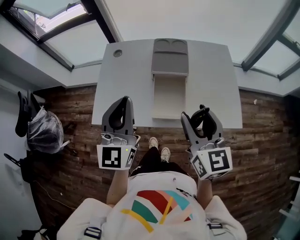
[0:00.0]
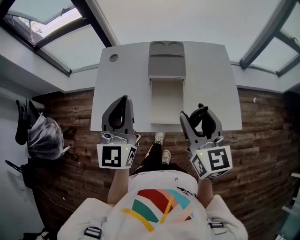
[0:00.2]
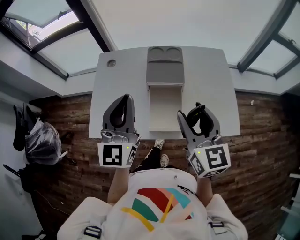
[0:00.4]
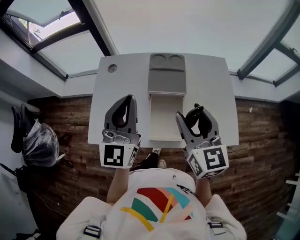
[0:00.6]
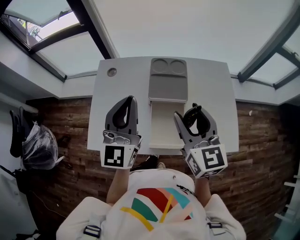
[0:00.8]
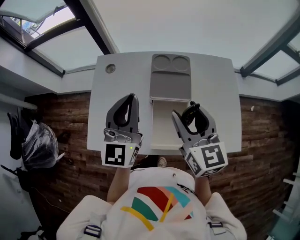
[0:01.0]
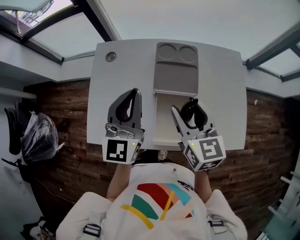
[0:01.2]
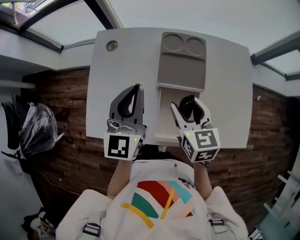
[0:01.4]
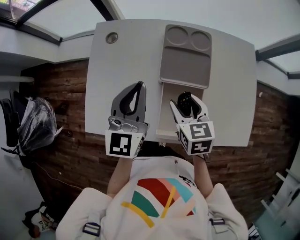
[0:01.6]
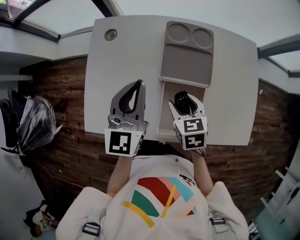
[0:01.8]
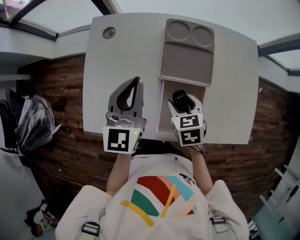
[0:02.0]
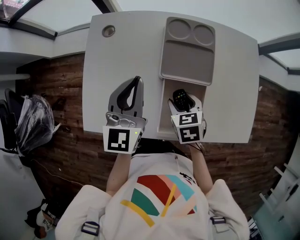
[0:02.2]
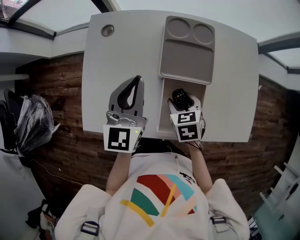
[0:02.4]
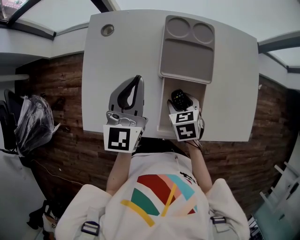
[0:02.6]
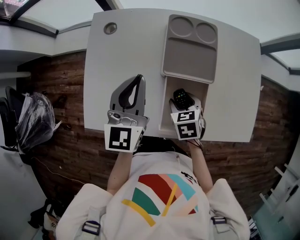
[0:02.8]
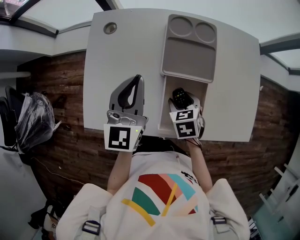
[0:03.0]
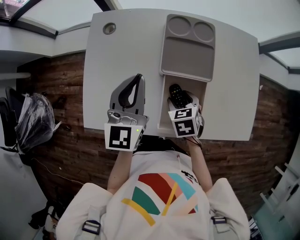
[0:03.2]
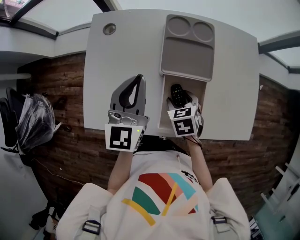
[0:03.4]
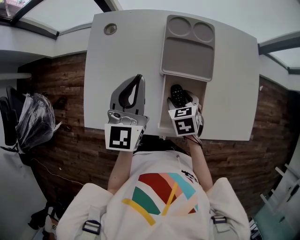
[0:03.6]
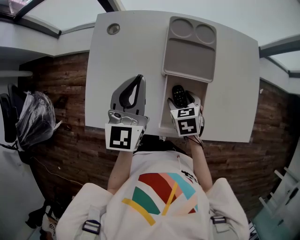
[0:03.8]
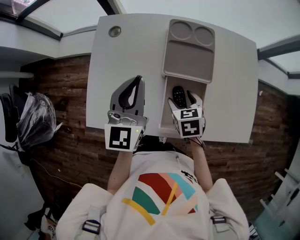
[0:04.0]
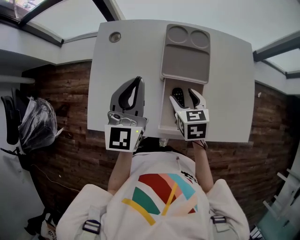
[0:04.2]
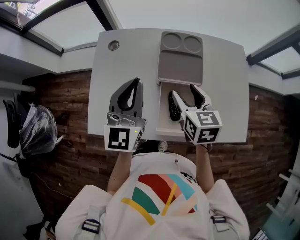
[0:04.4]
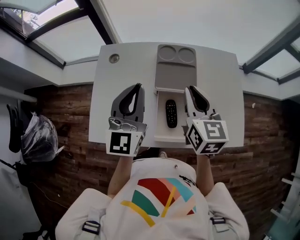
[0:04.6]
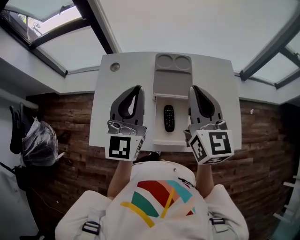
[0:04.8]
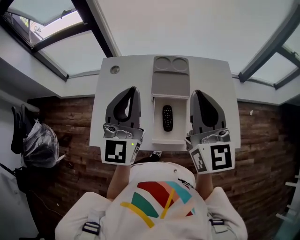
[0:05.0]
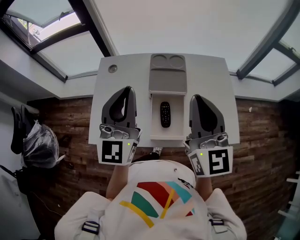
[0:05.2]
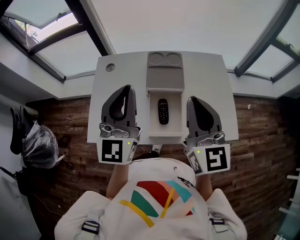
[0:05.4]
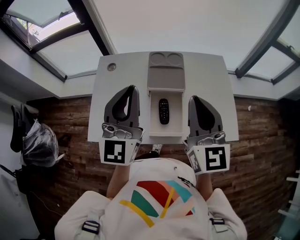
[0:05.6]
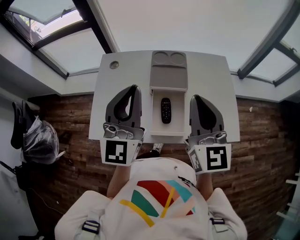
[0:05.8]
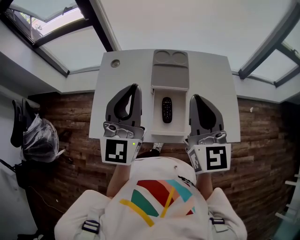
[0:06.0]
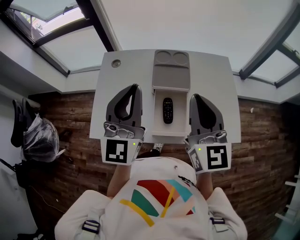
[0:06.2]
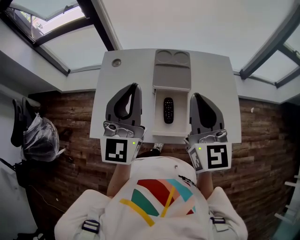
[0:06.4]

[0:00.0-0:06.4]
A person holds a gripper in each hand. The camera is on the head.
0:00.0 to 0:01.6: Both grippers travel together forward and downward, some 25 cm. The right gripper points its fingers about 30 degrees further downward.
0:01.6 to 0:03.2: The right gripper shifts approximately 10 cm downward, and changes its angle by approximately 20 degrees.
0:03.2 to 0:04.8: The left gripper goes some 15 cm upward, while the right gripper heads upward, covering about 35 cm, angles its fingers upward, by roughly 60 degrees, and closes up.
0:04.8 to 0:06.4: The two grippers go some 5 cm backward.

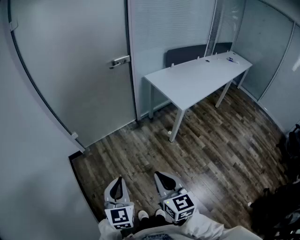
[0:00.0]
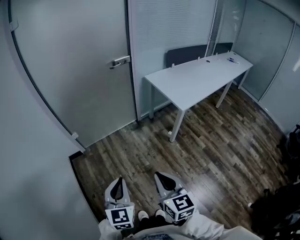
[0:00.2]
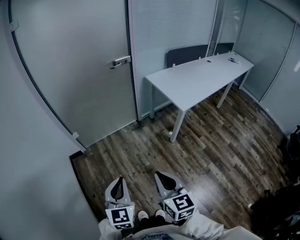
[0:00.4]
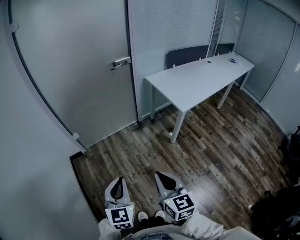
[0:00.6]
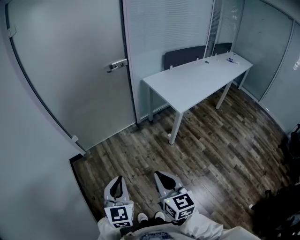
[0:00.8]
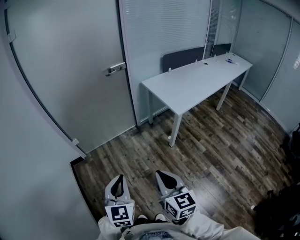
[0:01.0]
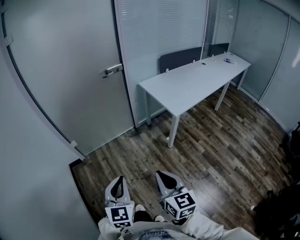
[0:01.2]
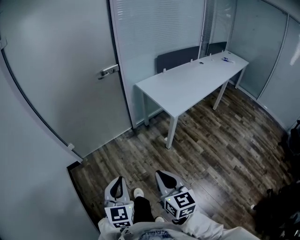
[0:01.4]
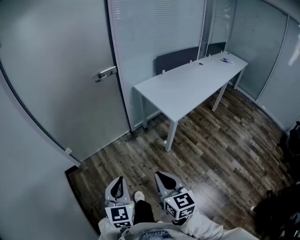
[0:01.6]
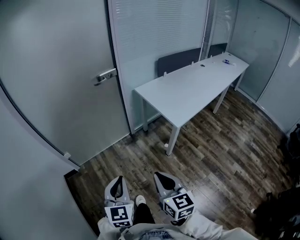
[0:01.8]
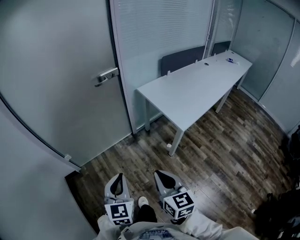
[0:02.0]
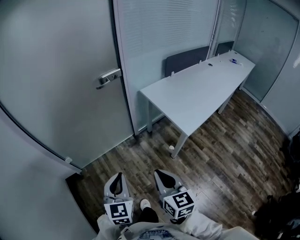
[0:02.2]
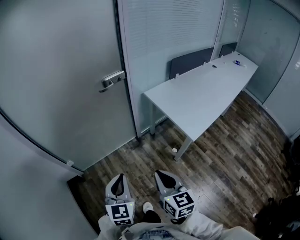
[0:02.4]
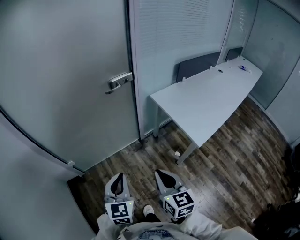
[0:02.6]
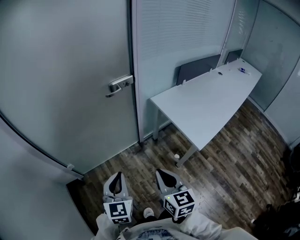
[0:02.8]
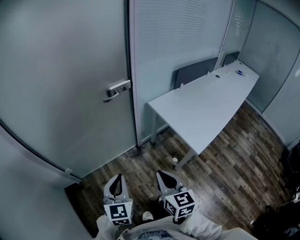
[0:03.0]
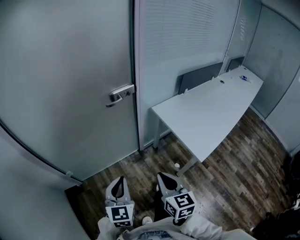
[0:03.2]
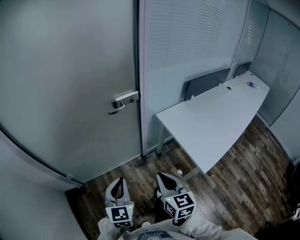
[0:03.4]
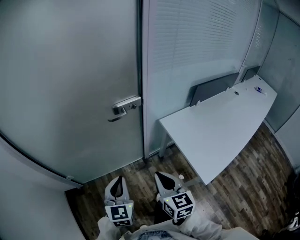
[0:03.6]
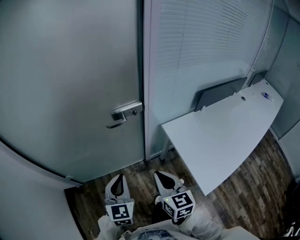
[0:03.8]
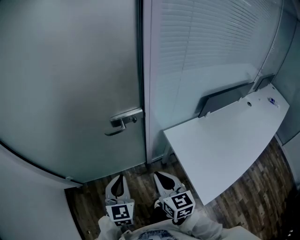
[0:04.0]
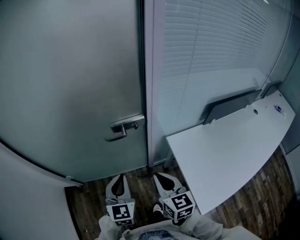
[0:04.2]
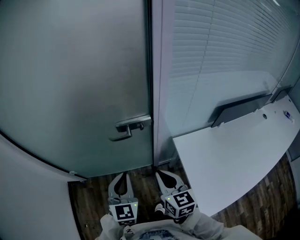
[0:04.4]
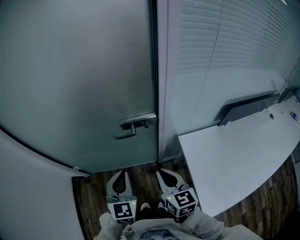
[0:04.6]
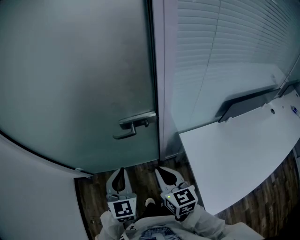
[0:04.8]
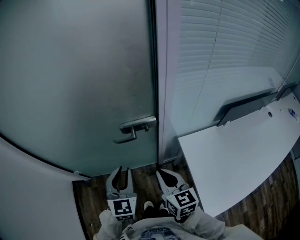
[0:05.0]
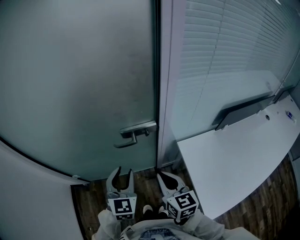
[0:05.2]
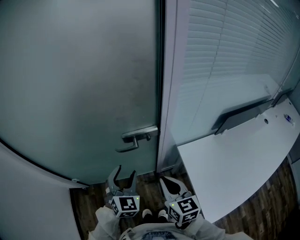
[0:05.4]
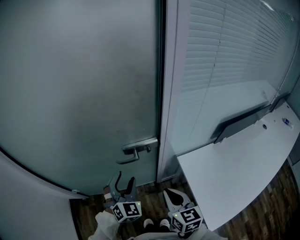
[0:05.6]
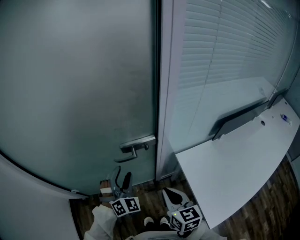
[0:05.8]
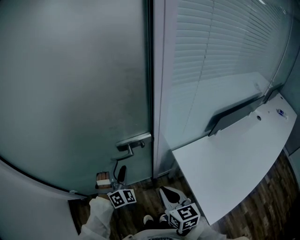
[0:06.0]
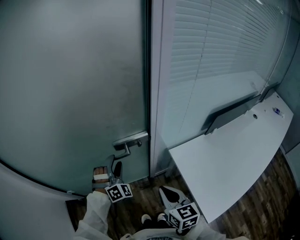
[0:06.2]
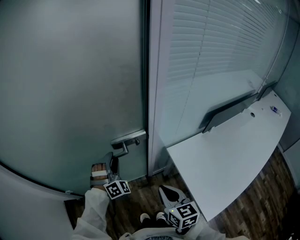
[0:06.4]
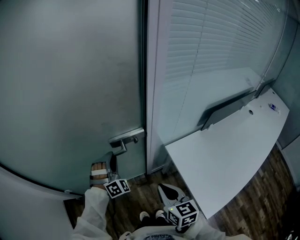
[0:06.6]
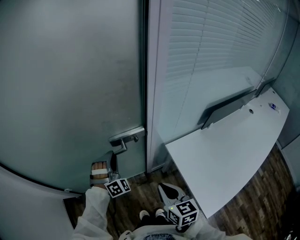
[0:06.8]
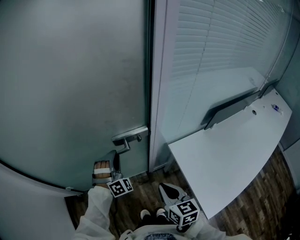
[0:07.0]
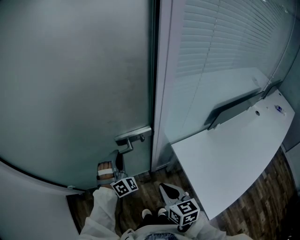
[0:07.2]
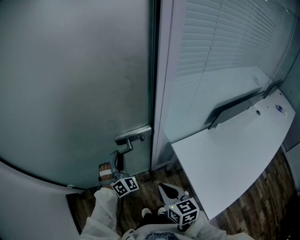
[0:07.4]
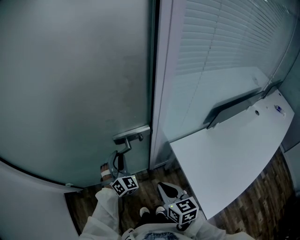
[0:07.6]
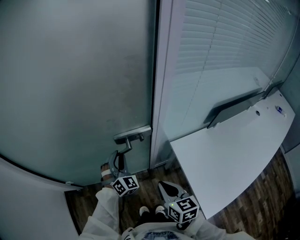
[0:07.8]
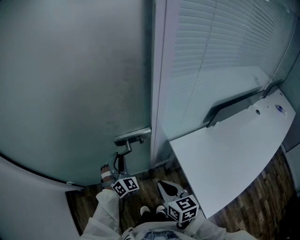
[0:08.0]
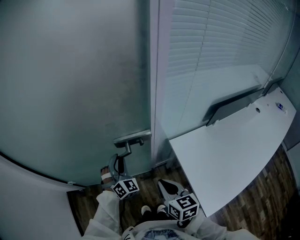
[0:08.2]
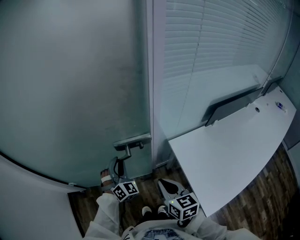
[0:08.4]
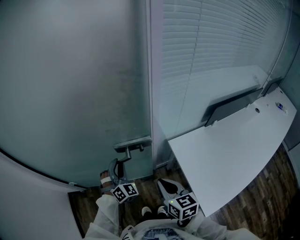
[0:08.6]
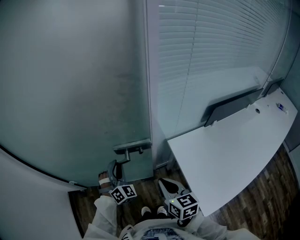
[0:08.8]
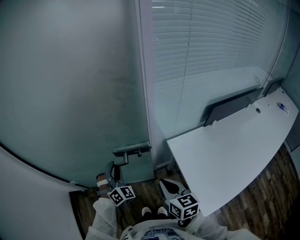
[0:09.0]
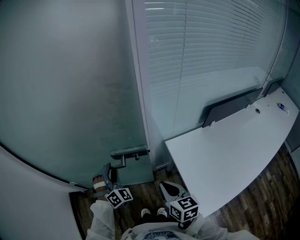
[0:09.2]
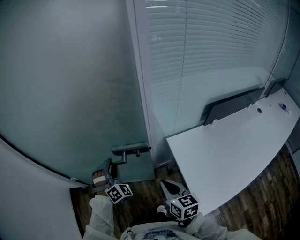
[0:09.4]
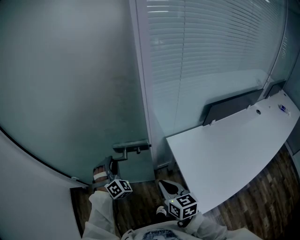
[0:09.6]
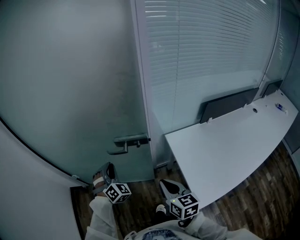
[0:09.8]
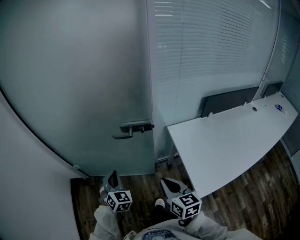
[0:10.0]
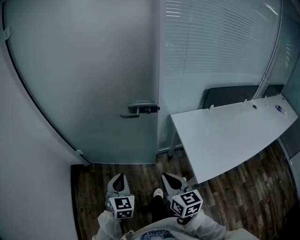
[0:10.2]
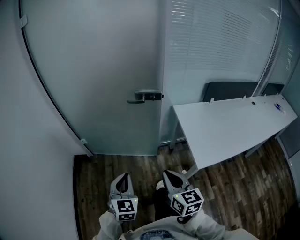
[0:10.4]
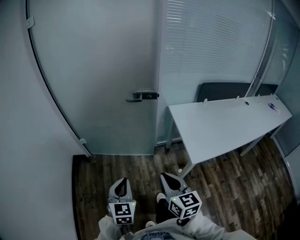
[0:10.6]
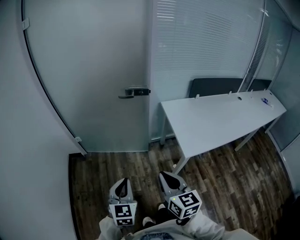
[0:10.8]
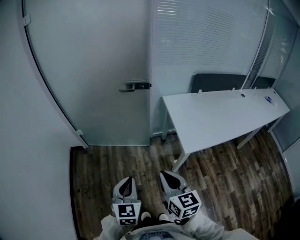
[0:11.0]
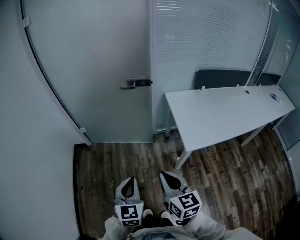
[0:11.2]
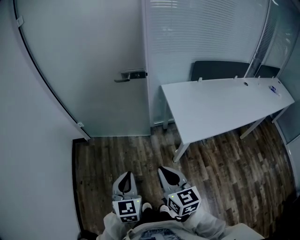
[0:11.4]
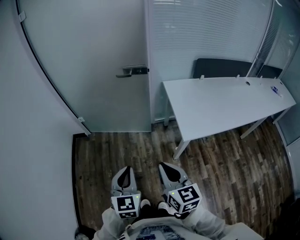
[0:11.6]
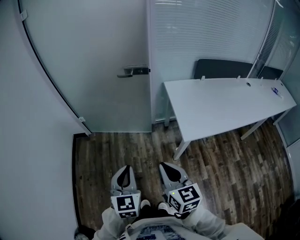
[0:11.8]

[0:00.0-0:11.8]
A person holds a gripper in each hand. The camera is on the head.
0:00.0 to 0:01.4: The two grippers go about 10 cm to the right.
0:01.4 to 0:03.0: The two grippers go about 35 cm forward.
0:03.0 to 0:04.4: The grippers both shift forward by roughly 30 cm. The left gripper rotates about 20 degrees. Meanwhile the right gripper swivels some 20 degrees.
0:04.4 to 0:06.0: The left gripper goes approximately 15 cm forward, rolls clockwise, seen from behind, by roughly 50 degrees, and opens its fingers.
0:06.0 to 0:07.4: The left gripper closes its fingers.
0:07.4 to 0:08.8: The left gripper is displaced backward by approximately 10 cm.
0:08.8 to 0:10.4: The grippers both shift backward by some 40 cm. The left gripper rolls counterclockwise, seen from behind, by some 40 degrees, and closes its fingers.
0:10.4 to 0:11.8: The right gripper is displaced backward by approximately 15 cm, while the left gripper travels backward and to the right by some 15 cm.

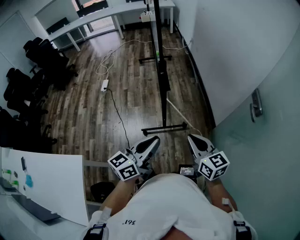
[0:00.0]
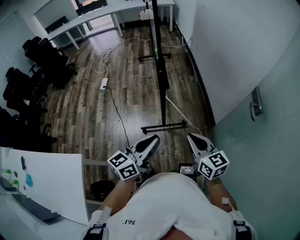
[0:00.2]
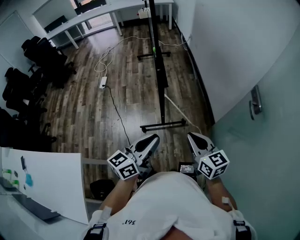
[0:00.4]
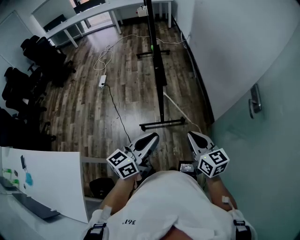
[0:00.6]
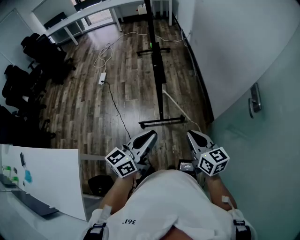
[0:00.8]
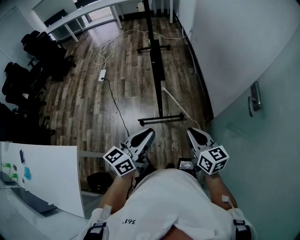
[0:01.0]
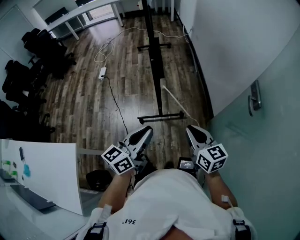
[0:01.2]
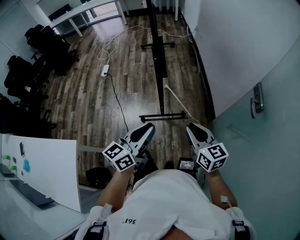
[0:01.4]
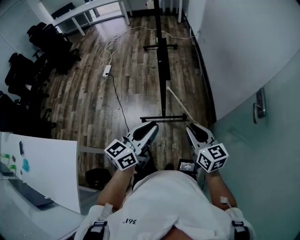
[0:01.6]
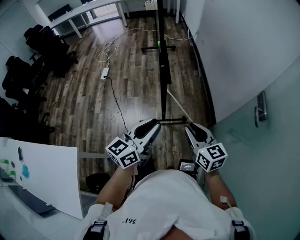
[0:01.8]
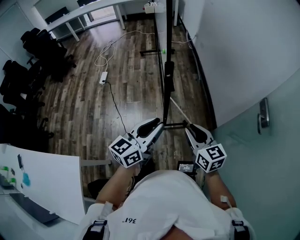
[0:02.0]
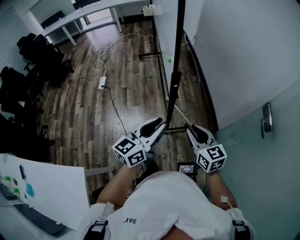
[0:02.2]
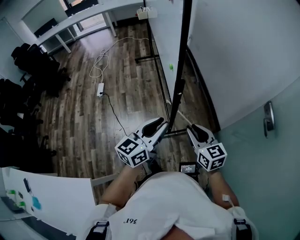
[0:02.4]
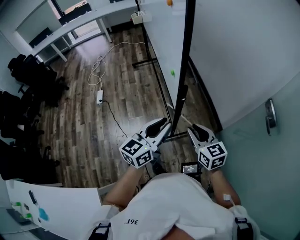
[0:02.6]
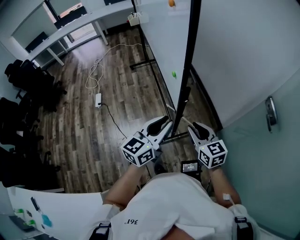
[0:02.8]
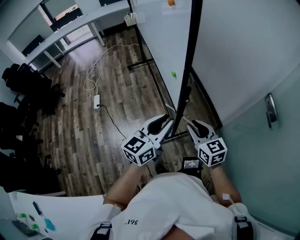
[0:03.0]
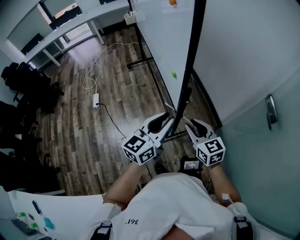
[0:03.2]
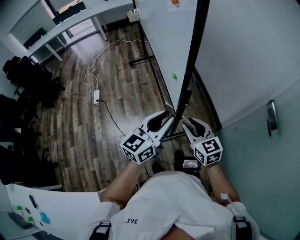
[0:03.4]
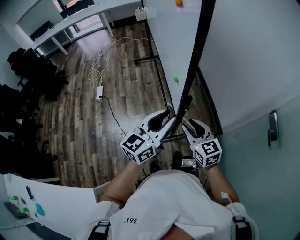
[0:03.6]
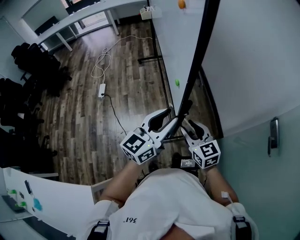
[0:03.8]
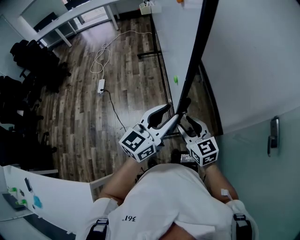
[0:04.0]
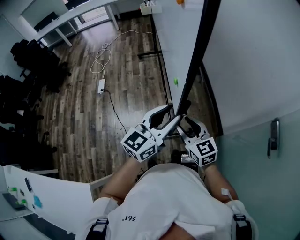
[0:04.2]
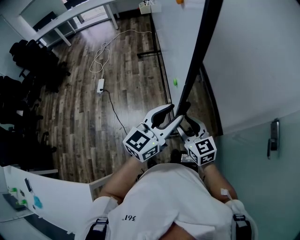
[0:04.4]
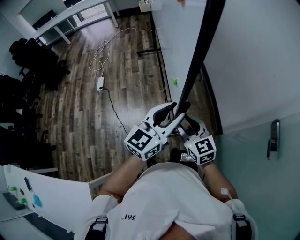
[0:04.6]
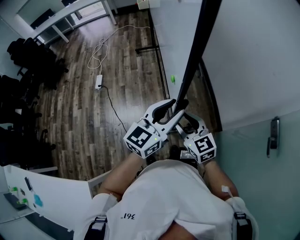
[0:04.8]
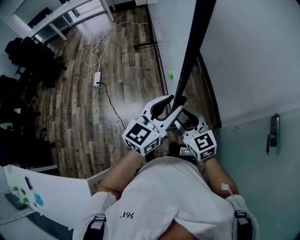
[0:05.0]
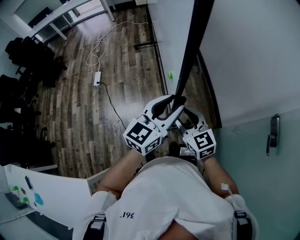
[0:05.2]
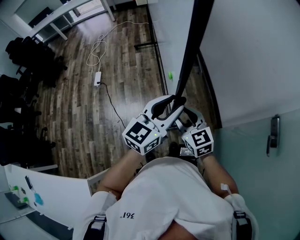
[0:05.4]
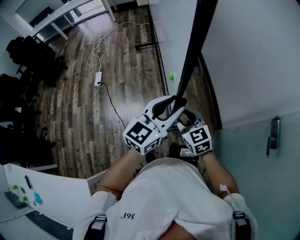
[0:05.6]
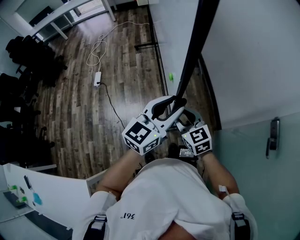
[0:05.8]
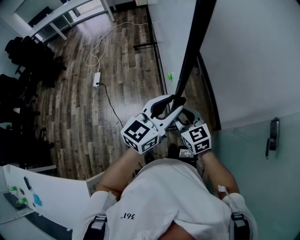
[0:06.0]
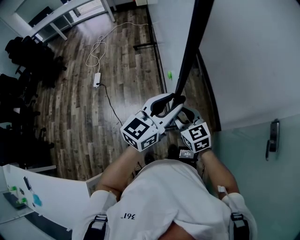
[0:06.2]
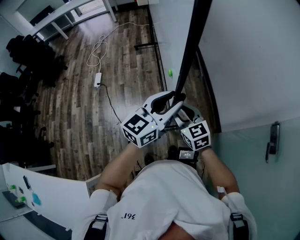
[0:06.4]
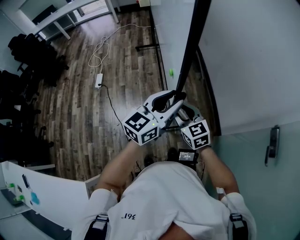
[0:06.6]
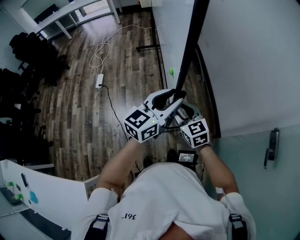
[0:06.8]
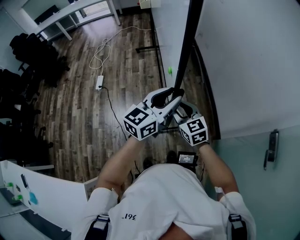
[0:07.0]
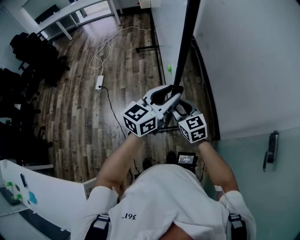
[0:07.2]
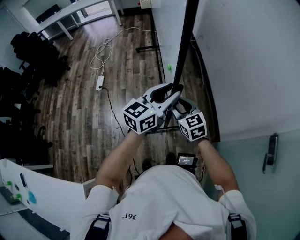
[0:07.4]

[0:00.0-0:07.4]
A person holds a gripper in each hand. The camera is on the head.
0:00.0 to 0:01.4: The right gripper changes place by about 5 cm.
0:01.4 to 0:03.0: The two grippers go about 25 cm forward and to the left. The left gripper rotates some 20 degrees.
0:03.0 to 0:04.4: Both grippers travel together forward, roughly 10 cm.
0:04.4 to 0:06.0: There are only small adjustments of the grippers.
0:06.0 to 0:07.4: Both grippers move forward, approximately 10 cm.
